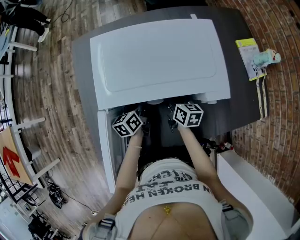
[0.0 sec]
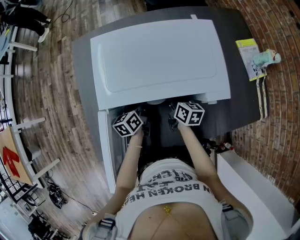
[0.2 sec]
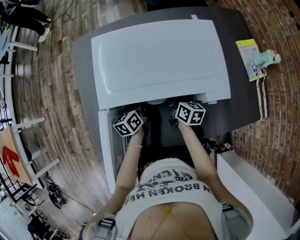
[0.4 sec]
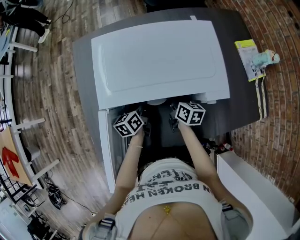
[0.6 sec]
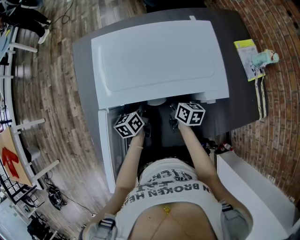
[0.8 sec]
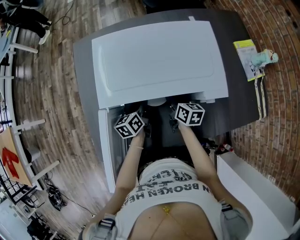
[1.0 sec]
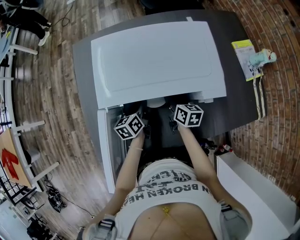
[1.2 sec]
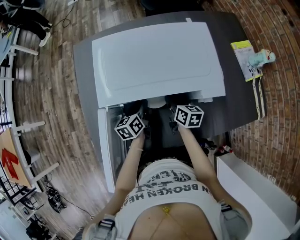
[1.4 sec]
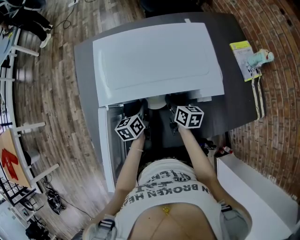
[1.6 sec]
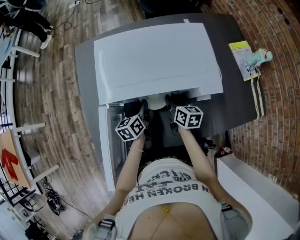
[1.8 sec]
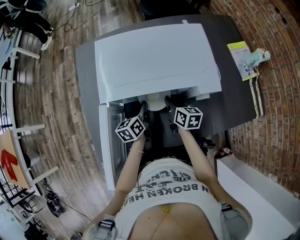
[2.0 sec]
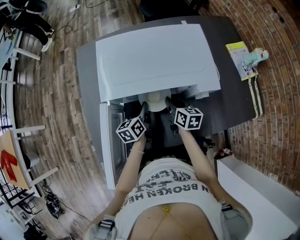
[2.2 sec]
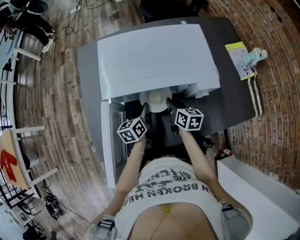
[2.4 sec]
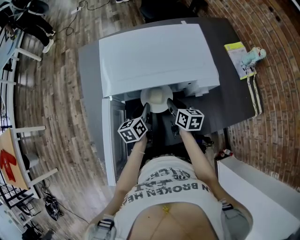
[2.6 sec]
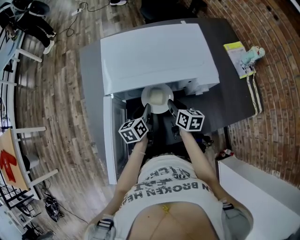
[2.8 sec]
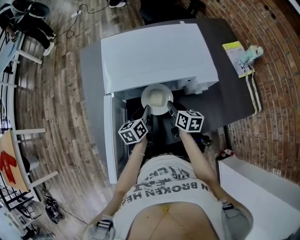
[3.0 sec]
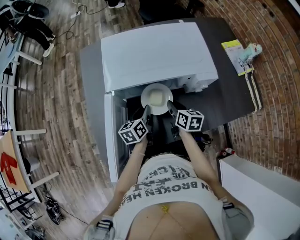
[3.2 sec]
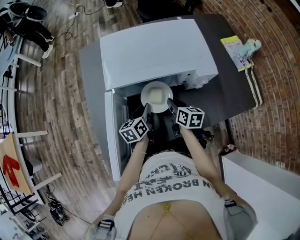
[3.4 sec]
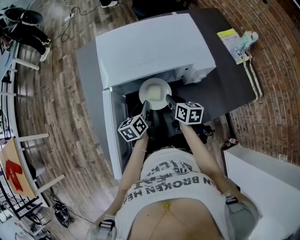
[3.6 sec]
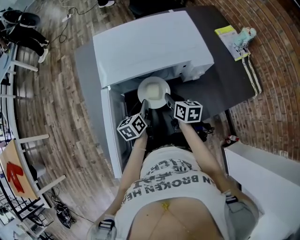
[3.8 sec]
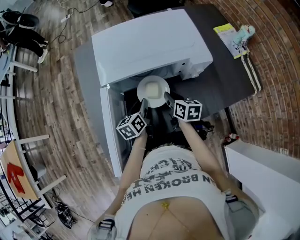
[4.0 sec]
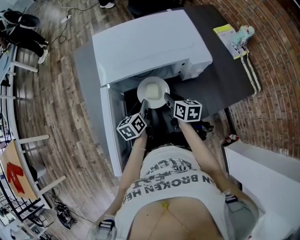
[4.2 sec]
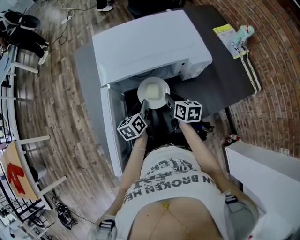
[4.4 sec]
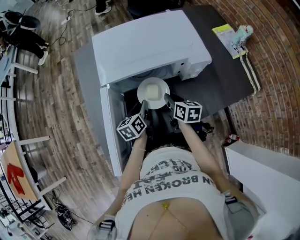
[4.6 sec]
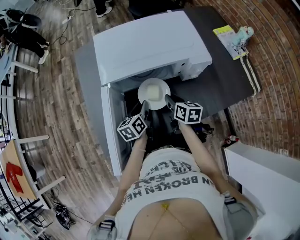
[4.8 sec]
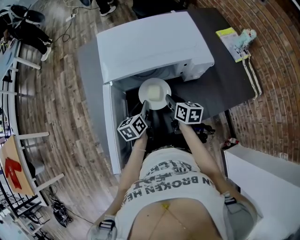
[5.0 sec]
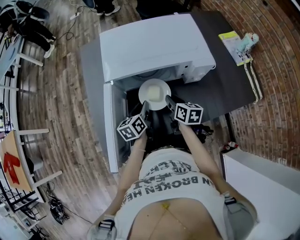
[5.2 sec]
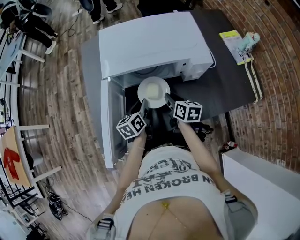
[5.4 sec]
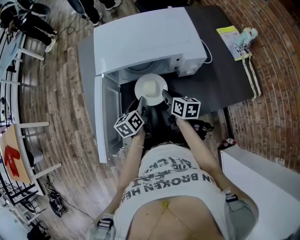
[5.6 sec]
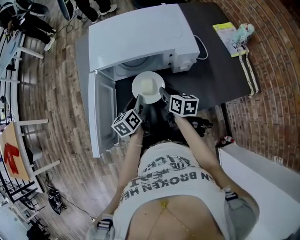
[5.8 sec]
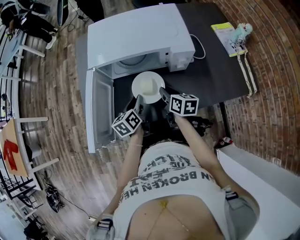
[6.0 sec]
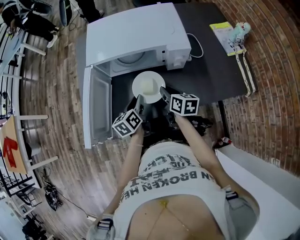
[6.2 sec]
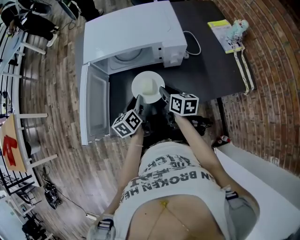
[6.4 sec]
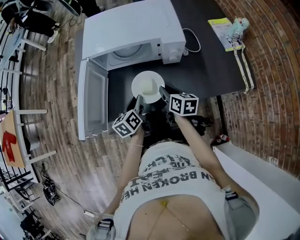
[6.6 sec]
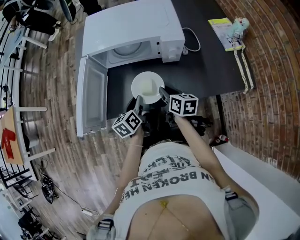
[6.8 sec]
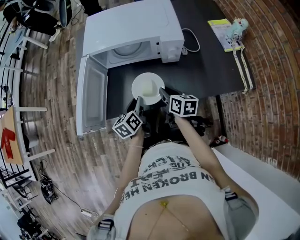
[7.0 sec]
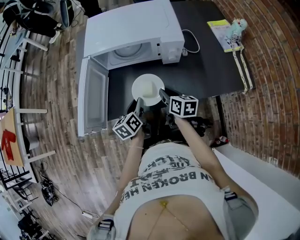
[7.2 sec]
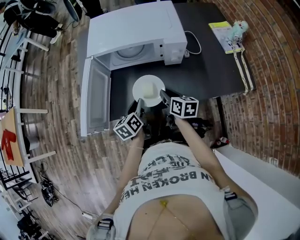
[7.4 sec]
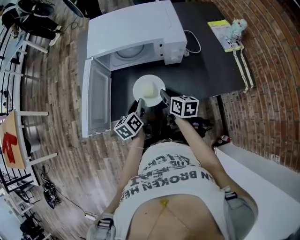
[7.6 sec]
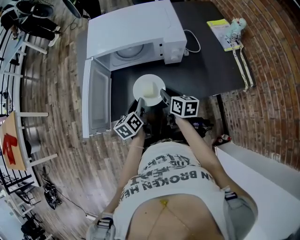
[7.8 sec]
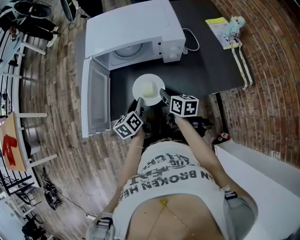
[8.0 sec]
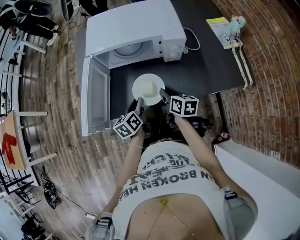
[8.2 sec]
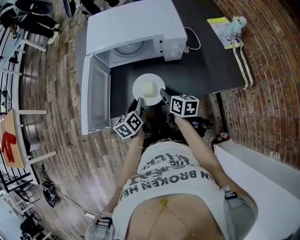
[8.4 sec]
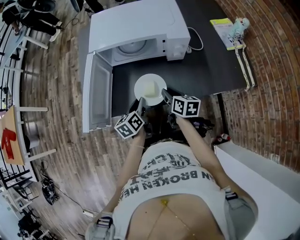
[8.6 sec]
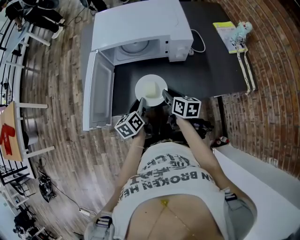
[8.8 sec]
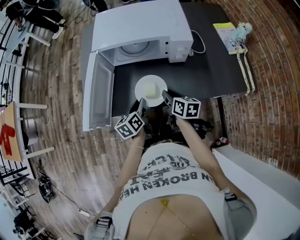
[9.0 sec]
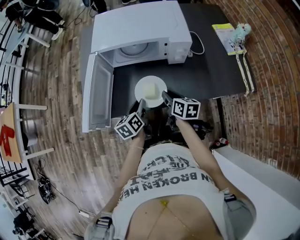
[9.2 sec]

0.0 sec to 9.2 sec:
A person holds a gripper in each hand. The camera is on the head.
0.0 sec to 1.6 sec: The grippers stay close to where they were, moving slightly.
1.6 sec to 3.0 sec: The grippers both shift backward by some 5 cm.
3.0 sec to 4.6 sec: There are only small adjustments of the grippers.
4.6 sec to 6.2 sec: The left gripper shifts approximately 10 cm backward and to the right. The right gripper is displaced to the right and backward by some 10 cm.
6.2 sec to 7.6 sec: Both grippers move backward, roughly 5 cm.
7.6 sec to 9.2 sec: The grippers move only a little.

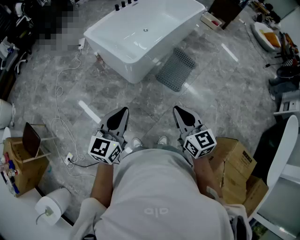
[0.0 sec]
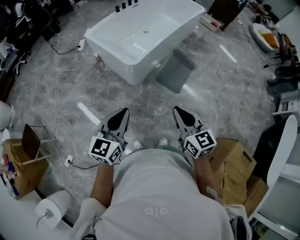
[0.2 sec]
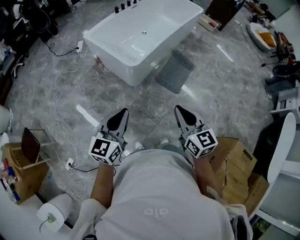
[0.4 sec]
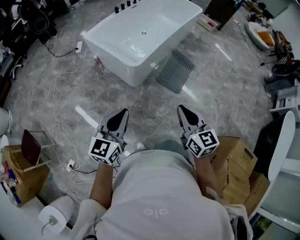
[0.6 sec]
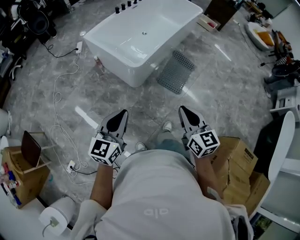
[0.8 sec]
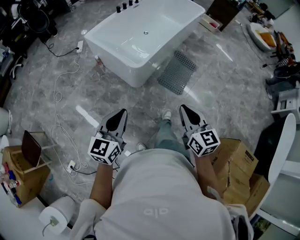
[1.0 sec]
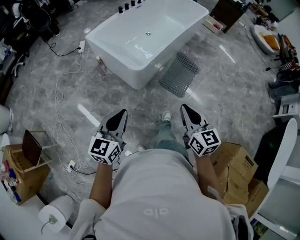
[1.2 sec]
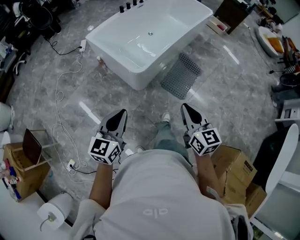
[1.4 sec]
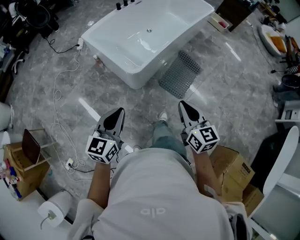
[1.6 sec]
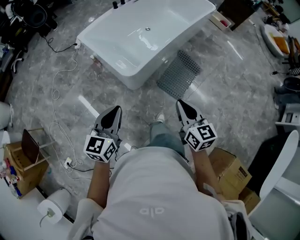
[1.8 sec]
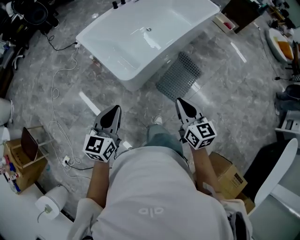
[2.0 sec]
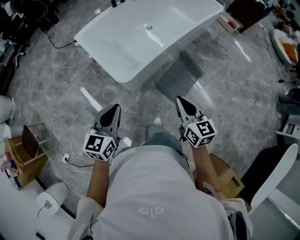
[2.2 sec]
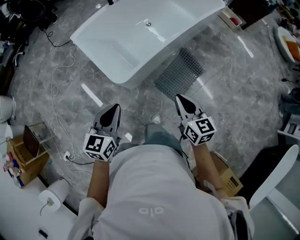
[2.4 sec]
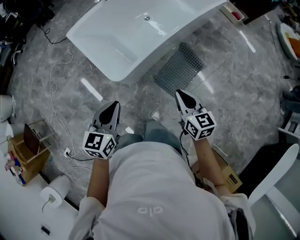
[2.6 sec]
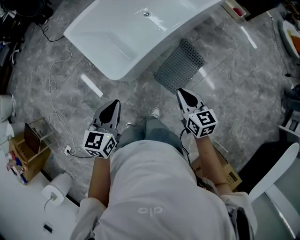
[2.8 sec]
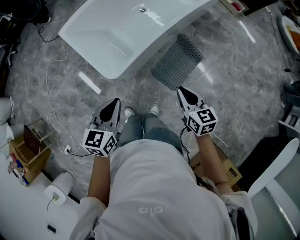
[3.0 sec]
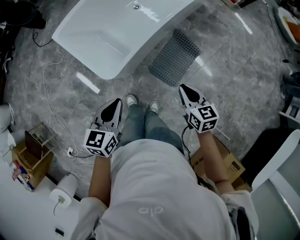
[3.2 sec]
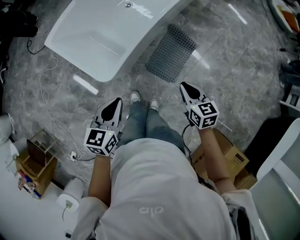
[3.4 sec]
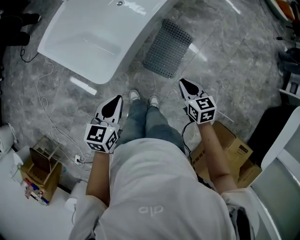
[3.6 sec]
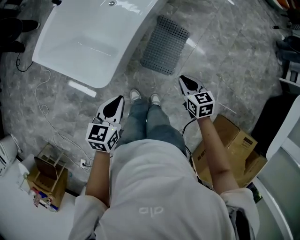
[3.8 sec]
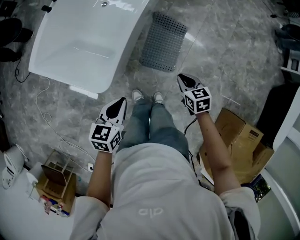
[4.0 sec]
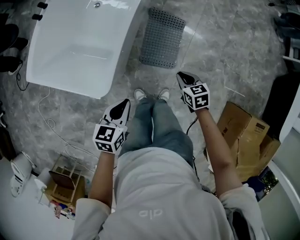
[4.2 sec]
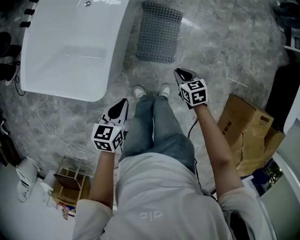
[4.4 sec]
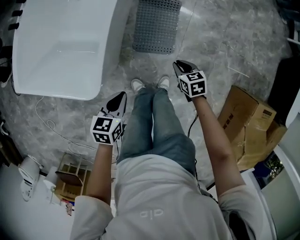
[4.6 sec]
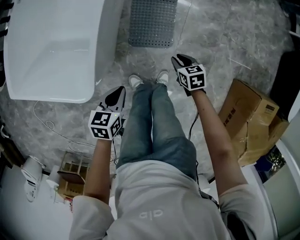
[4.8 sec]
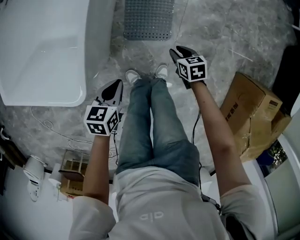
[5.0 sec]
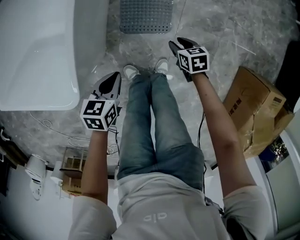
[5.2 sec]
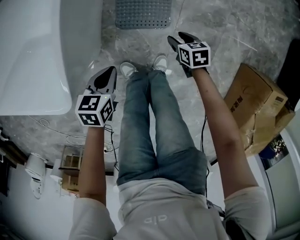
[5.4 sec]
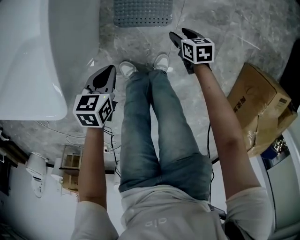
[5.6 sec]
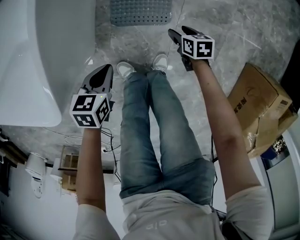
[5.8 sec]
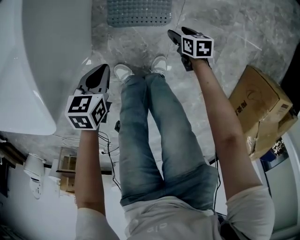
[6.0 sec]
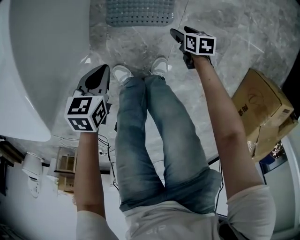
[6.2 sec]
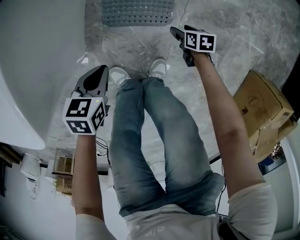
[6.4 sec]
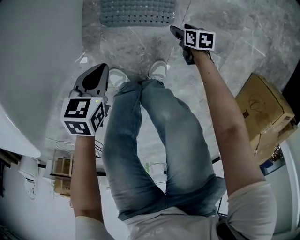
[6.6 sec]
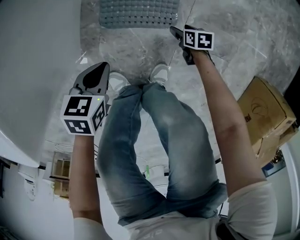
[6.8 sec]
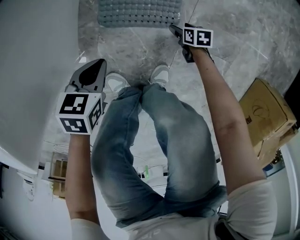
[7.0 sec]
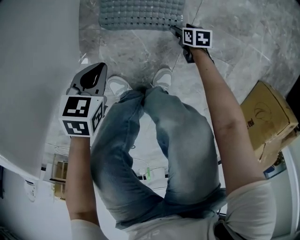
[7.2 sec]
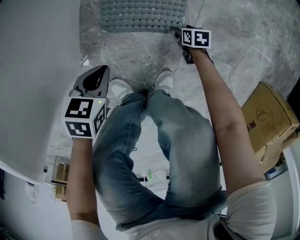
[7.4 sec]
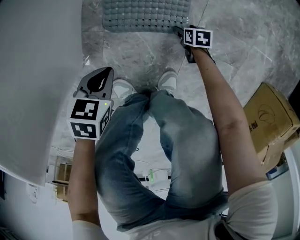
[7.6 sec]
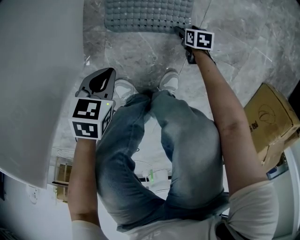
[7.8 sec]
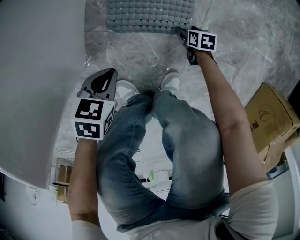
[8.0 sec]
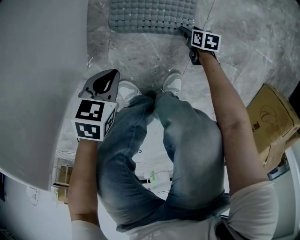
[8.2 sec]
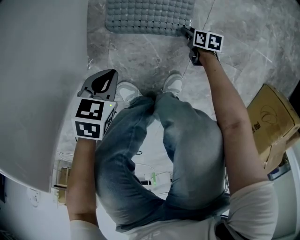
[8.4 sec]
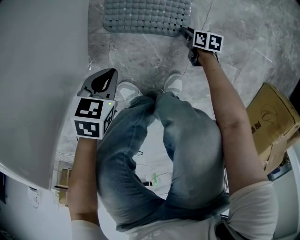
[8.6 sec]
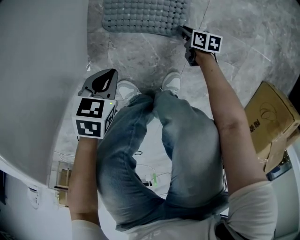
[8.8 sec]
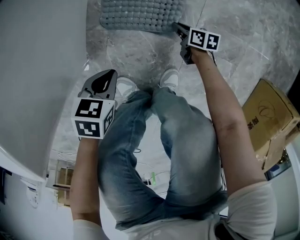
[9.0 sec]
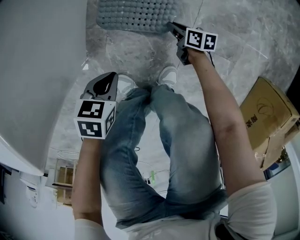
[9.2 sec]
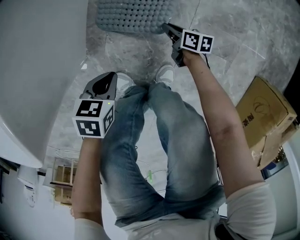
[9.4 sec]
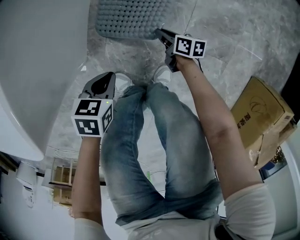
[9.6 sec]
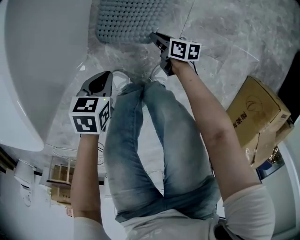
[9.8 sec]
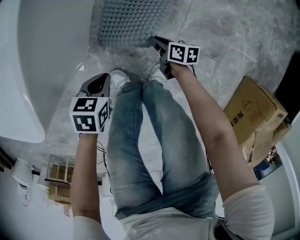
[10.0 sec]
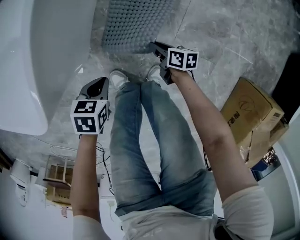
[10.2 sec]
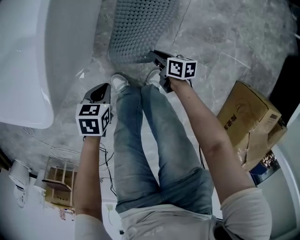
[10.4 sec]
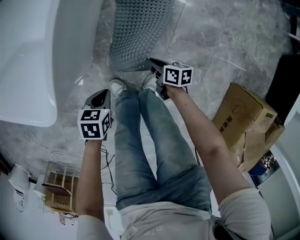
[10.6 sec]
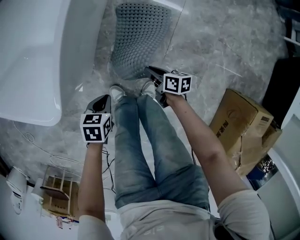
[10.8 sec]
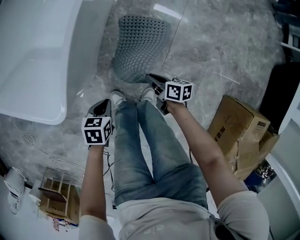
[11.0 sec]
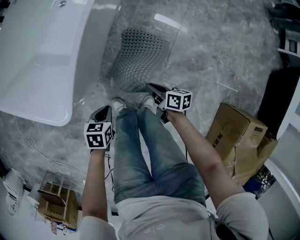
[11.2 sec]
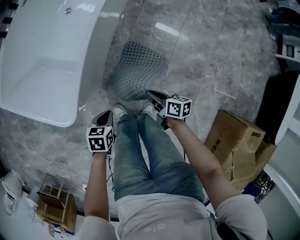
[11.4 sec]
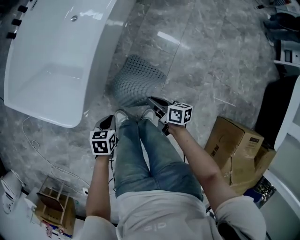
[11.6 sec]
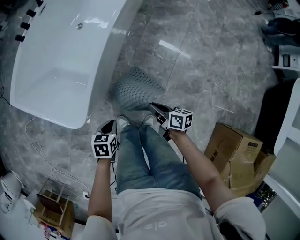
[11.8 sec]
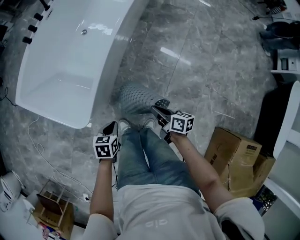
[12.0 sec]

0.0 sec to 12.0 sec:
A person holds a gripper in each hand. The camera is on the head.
0.0 sec to 1.6 sec: The grippers both shift forward by approximately 15 cm.
1.6 sec to 3.0 sec: The left gripper shifts about 30 cm forward and to the right. The right gripper travels forward, to the right and downward by roughly 35 cm.
3.0 sec to 4.4 sec: Both grippers move downward, some 25 cm. The right gripper swivels approximately 30 degrees; the left gripper swivels some 40 degrees.
4.4 sec to 6.0 sec: Both grippers move downward, some 35 cm. The right gripper turns by approximately 20 degrees, and opens its fingers.
6.0 sec to 7.6 sec: Both grippers travel together downward, roughly 25 cm.
7.6 sec to 9.0 sec: The right gripper is displaced upward and to the left by some 10 cm, turns by approximately 20 degrees, and closes.
9.0 sec to 10.4 sec: The right gripper shifts roughly 25 cm upward. The left gripper moves upward, about 15 cm.
10.4 sec to 12.0 sec: Both grippers move upward, roughly 30 cm.

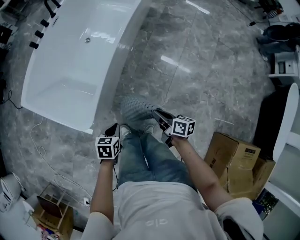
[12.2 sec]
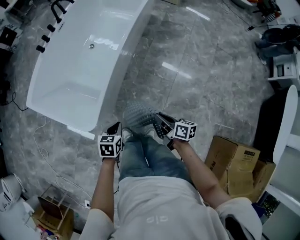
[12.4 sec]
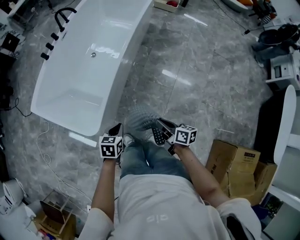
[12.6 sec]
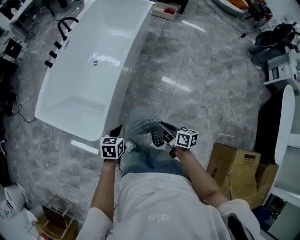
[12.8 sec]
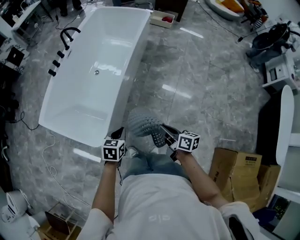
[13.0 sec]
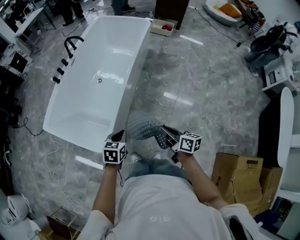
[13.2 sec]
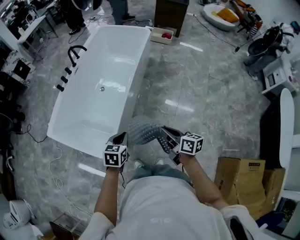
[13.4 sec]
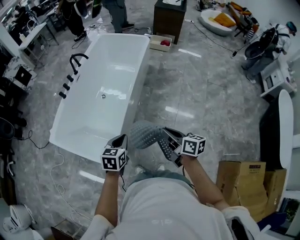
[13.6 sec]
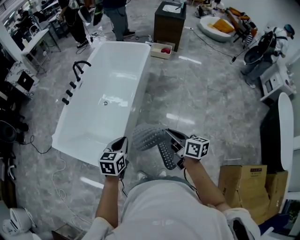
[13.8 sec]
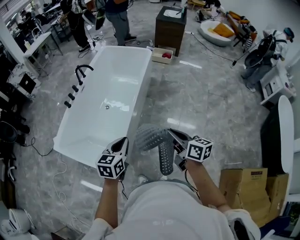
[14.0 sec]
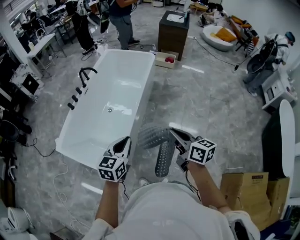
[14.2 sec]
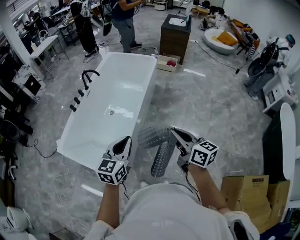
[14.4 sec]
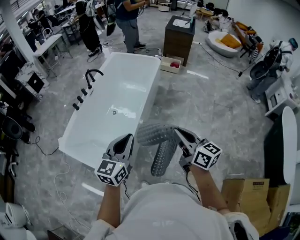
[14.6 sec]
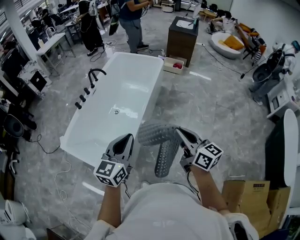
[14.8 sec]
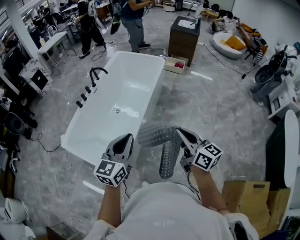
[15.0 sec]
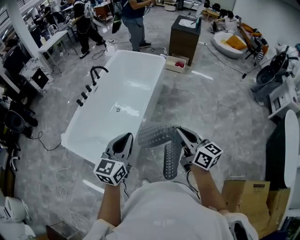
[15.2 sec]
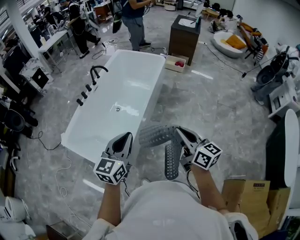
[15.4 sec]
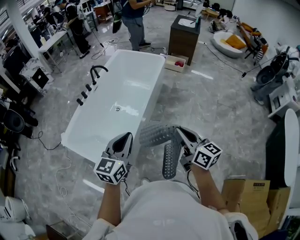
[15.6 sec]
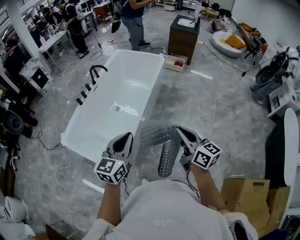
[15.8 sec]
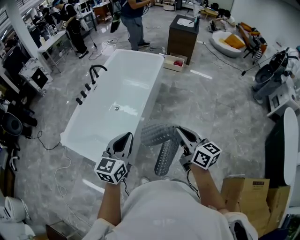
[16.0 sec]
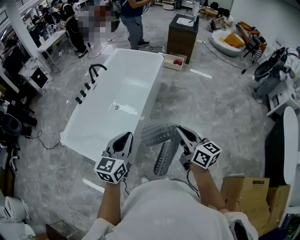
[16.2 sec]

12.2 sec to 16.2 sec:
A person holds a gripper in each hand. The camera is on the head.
12.2 sec to 13.6 sec: Both grippers travel together upward, roughly 30 cm. The left gripper rotates about 20 degrees.
13.6 sec to 14.8 sec: Both grippers travel together upward, some 20 cm. The right gripper turns by about 30 degrees, while the left gripper angles its fingers upward, by some 30 degrees.
14.8 sec to 16.2 sec: The grippers move only a little.
